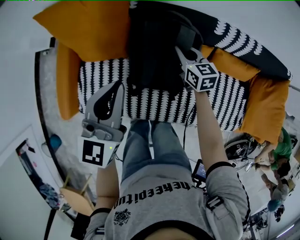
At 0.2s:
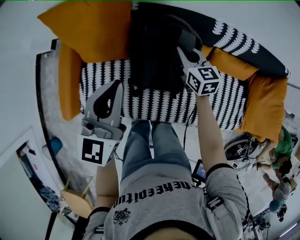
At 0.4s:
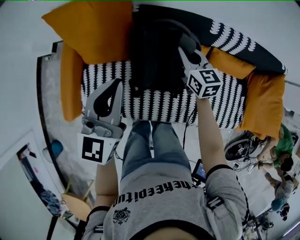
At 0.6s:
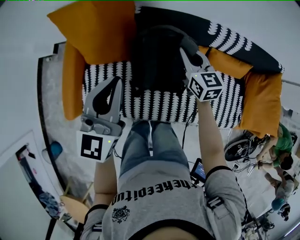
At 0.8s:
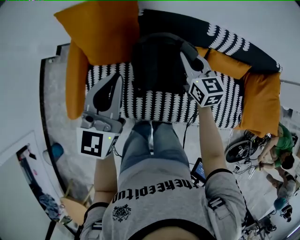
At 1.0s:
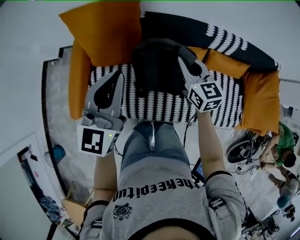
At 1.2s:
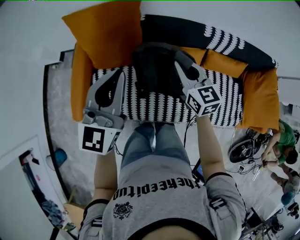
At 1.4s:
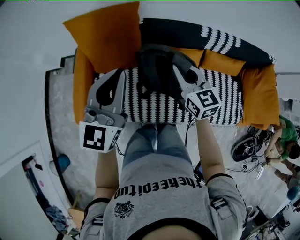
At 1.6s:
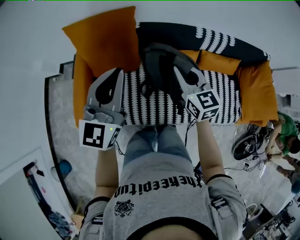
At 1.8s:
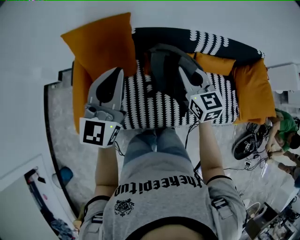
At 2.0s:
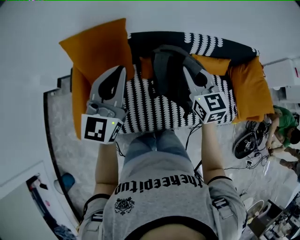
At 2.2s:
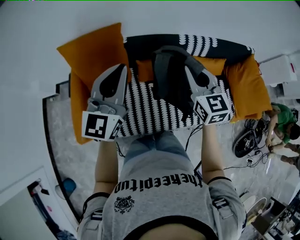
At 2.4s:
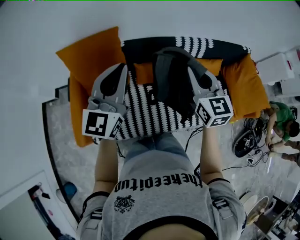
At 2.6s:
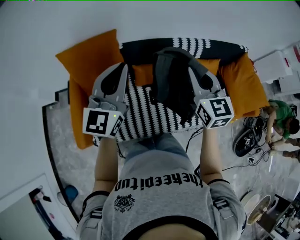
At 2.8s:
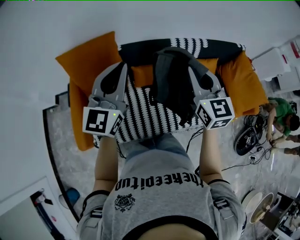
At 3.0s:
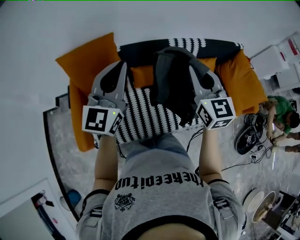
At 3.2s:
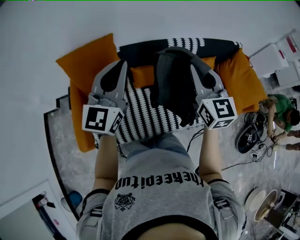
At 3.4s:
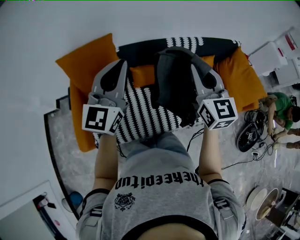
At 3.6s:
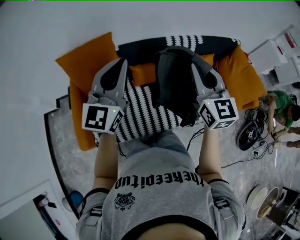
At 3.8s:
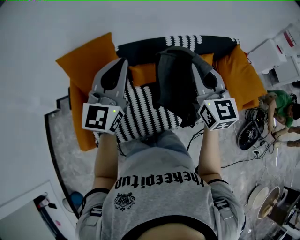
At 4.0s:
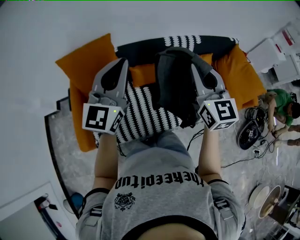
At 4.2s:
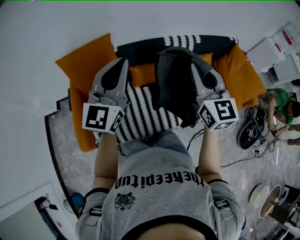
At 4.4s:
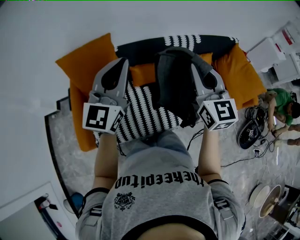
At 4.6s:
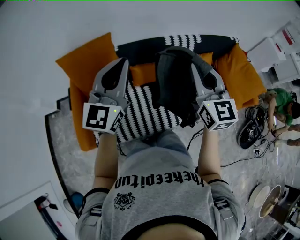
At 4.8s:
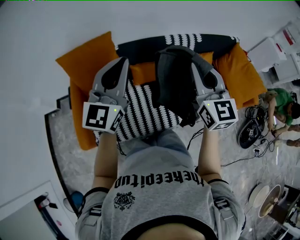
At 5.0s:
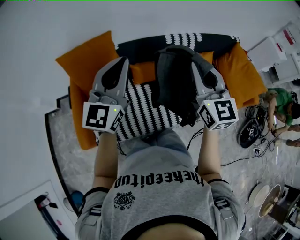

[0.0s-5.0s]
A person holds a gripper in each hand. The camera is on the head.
0.0s to 1.6s: The right gripper moves upward and backward, some 25 cm, while the left gripper moves upward and backward, some 15 cm.
1.6s to 3.4s: The right gripper is displaced upward, to the right and backward by about 20 cm, and rotates some 30 degrees, while the left gripper travels to the right and upward by about 10 cm.
3.4s to 5.0s: The grippers stay close to where they were, moving slightly.

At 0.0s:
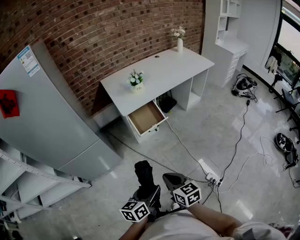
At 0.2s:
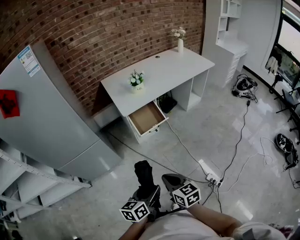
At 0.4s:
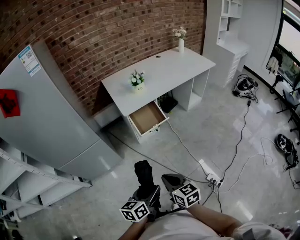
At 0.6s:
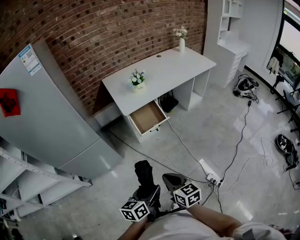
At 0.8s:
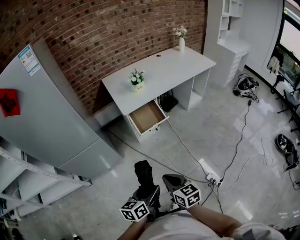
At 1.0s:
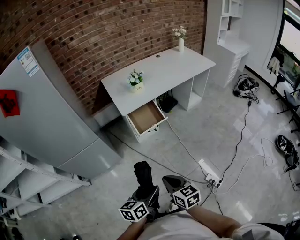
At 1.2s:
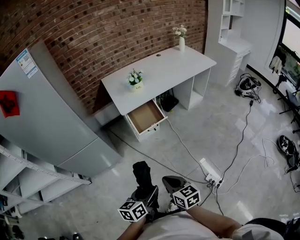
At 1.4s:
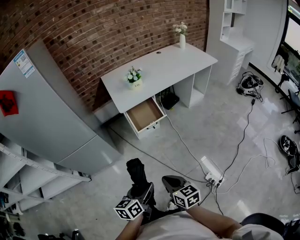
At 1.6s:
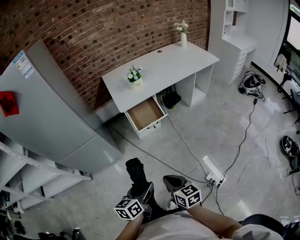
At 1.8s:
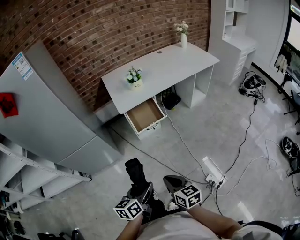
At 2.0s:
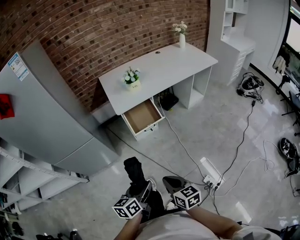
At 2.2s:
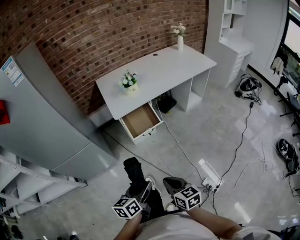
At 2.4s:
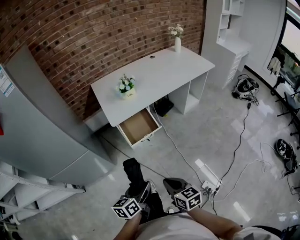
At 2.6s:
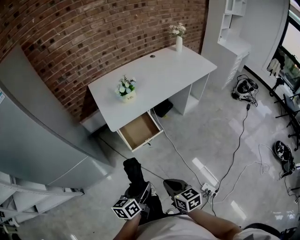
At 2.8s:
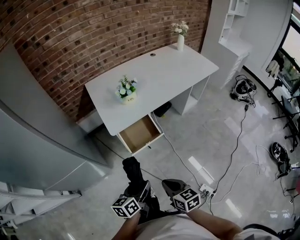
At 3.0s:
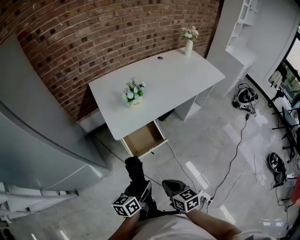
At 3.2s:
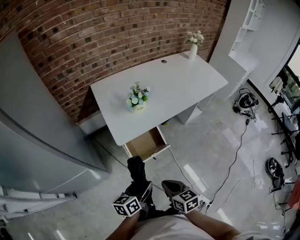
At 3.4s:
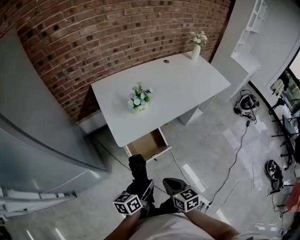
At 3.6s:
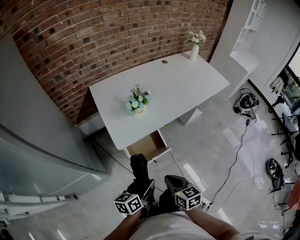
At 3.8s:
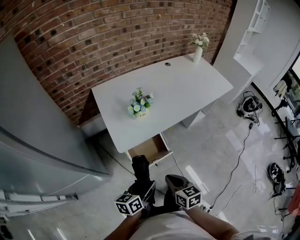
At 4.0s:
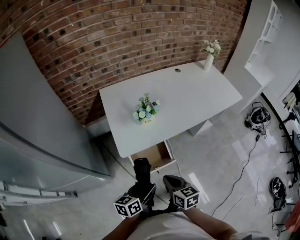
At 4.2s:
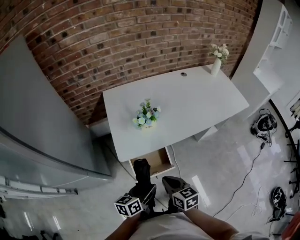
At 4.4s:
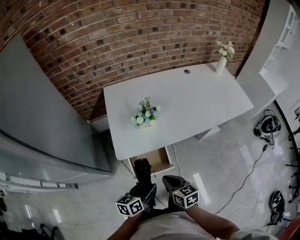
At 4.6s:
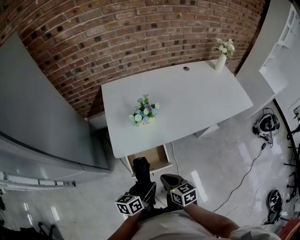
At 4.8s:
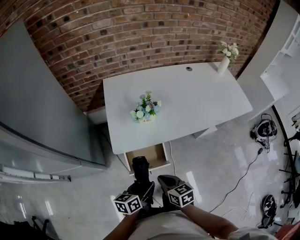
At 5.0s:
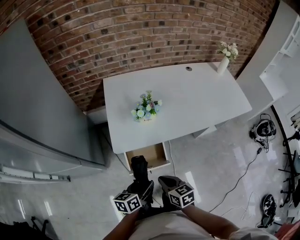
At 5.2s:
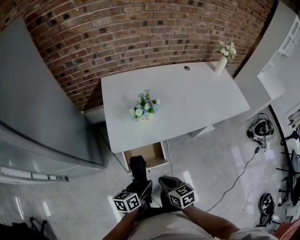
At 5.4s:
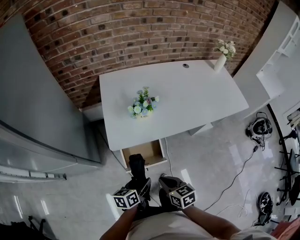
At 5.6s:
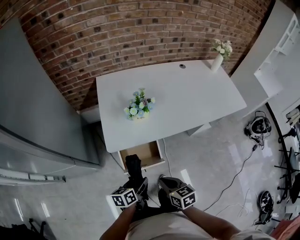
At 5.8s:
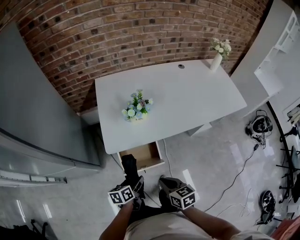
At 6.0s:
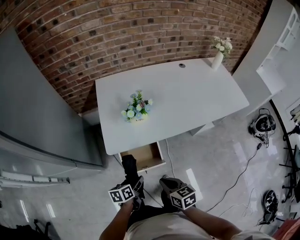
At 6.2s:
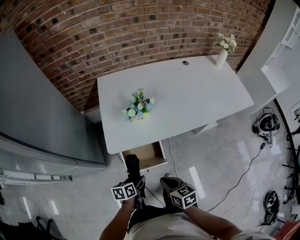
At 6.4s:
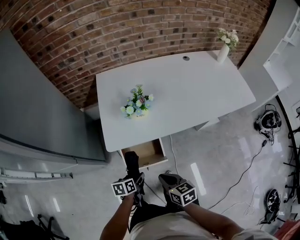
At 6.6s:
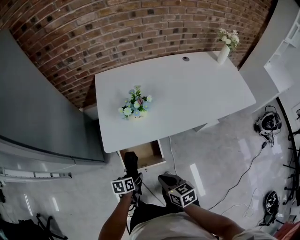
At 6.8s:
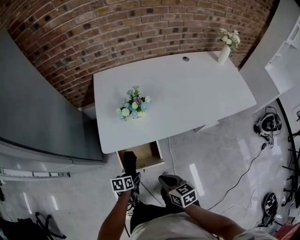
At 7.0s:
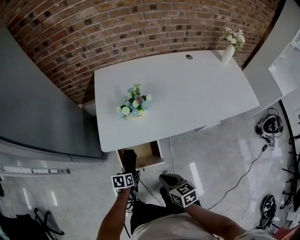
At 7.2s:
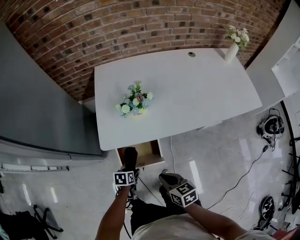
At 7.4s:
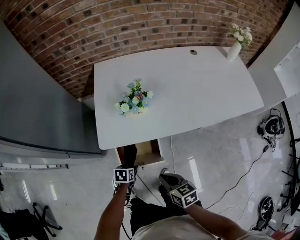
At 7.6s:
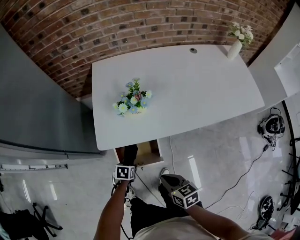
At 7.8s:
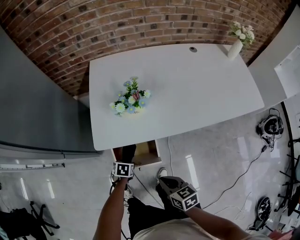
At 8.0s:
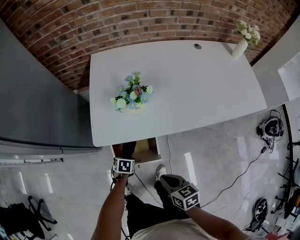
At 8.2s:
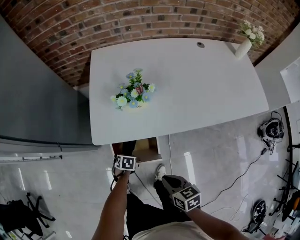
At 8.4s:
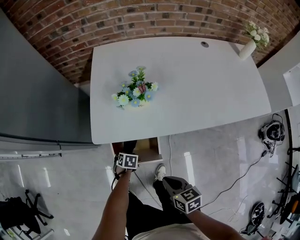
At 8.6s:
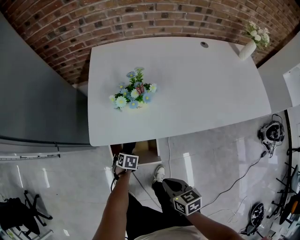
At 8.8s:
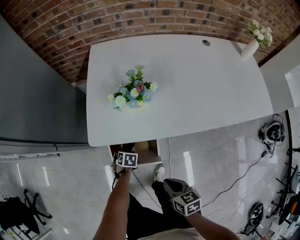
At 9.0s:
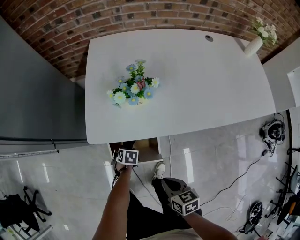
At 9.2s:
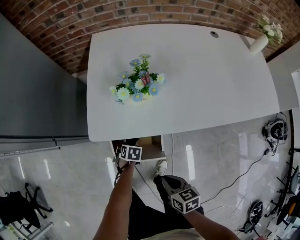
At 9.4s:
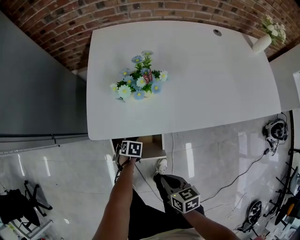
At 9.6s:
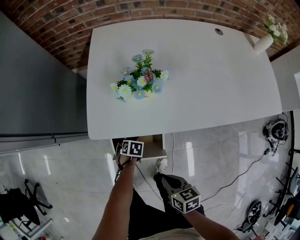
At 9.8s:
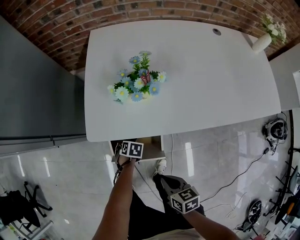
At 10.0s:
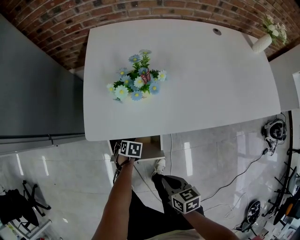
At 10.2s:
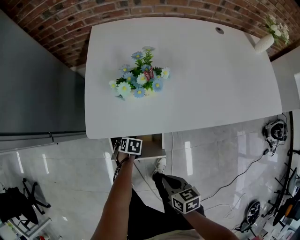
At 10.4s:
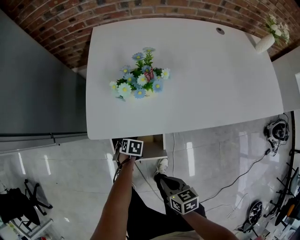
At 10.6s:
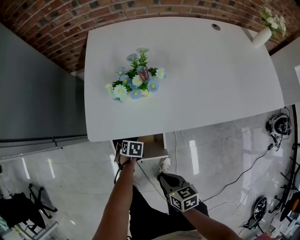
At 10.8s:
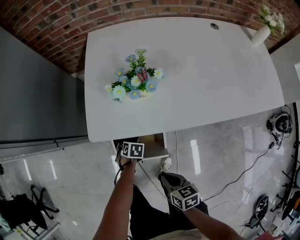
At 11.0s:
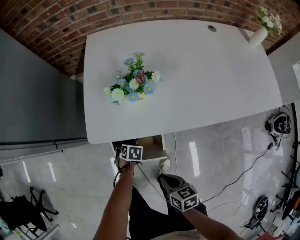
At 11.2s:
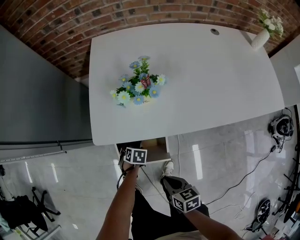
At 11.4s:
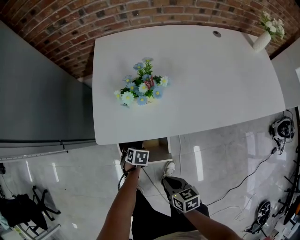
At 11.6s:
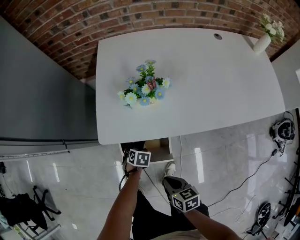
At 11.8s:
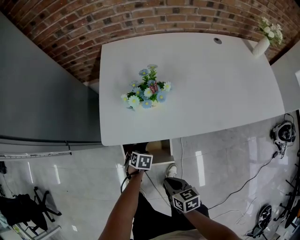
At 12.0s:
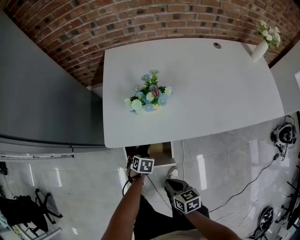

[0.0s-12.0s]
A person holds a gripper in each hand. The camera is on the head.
0.0s to 1.6s: The right gripper travels to the right by approximately 5 cm.
1.6s to 3.0s: The grippers both shift forward by approximately 25 cm.
3.0s to 4.4s: The right gripper moves forward, approximately 20 cm; the left gripper goes roughly 20 cm forward and to the right.
4.4s to 6.0s: The left gripper heads downward, covering roughly 10 cm. The right gripper moves approximately 5 cm.
6.0s to 7.6s: The right gripper moves downward, about 5 cm, while the left gripper is displaced downward and forward by approximately 15 cm, and tips its fingers downward by about 30 degrees.
7.6s to 9.0s: The two grippers go approximately 5 cm downward.
9.0s to 10.4s: There are only small adjustments of the grippers.
10.4s to 12.0s: The left gripper shifts approximately 10 cm upward.

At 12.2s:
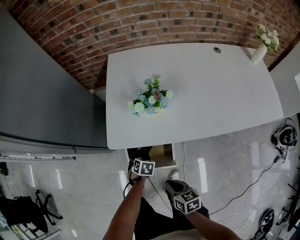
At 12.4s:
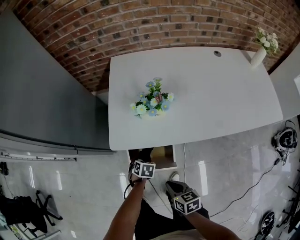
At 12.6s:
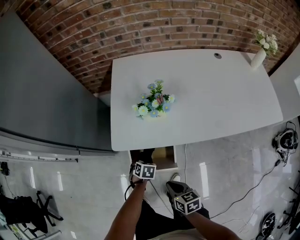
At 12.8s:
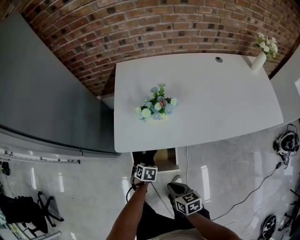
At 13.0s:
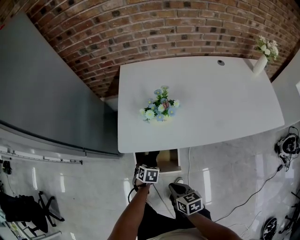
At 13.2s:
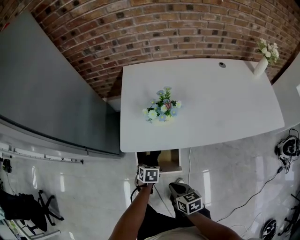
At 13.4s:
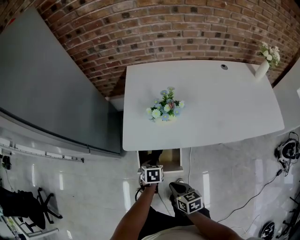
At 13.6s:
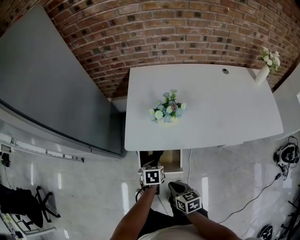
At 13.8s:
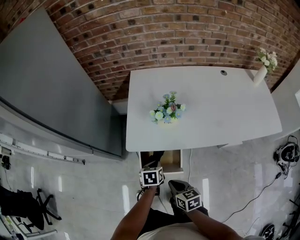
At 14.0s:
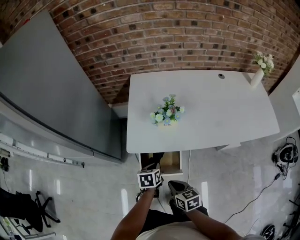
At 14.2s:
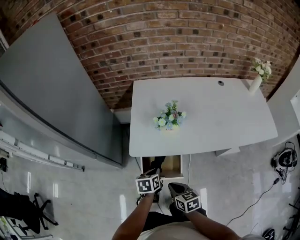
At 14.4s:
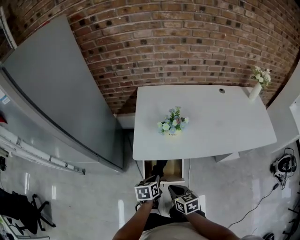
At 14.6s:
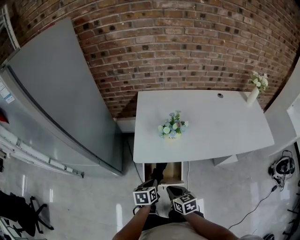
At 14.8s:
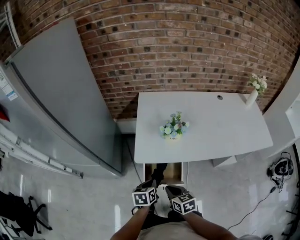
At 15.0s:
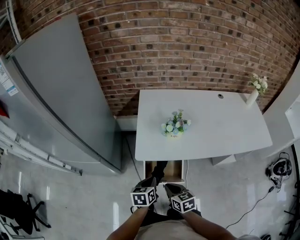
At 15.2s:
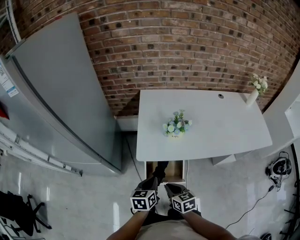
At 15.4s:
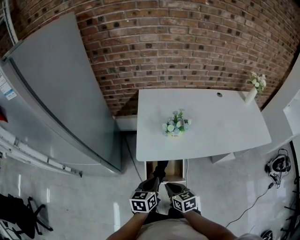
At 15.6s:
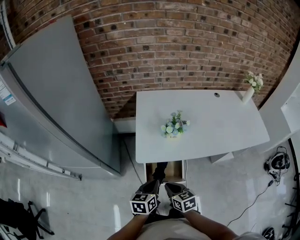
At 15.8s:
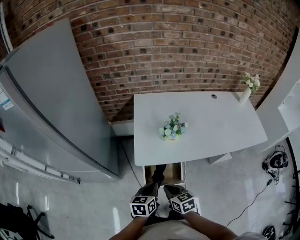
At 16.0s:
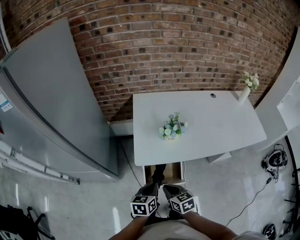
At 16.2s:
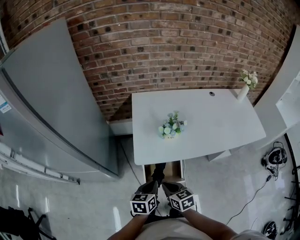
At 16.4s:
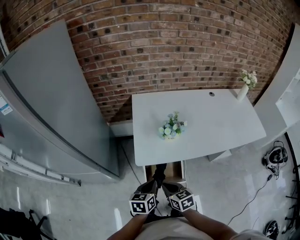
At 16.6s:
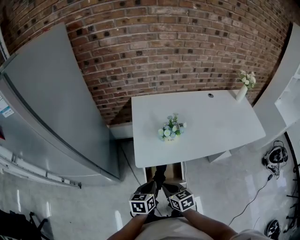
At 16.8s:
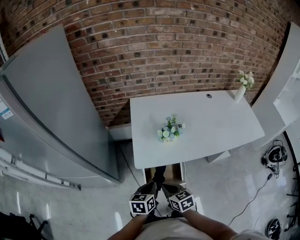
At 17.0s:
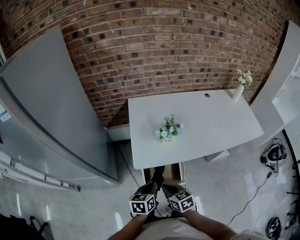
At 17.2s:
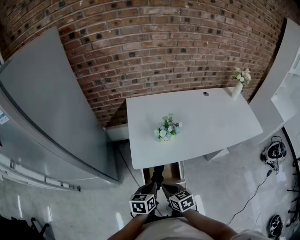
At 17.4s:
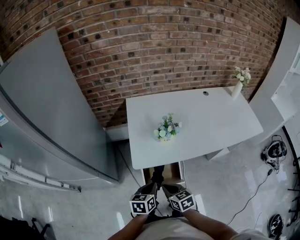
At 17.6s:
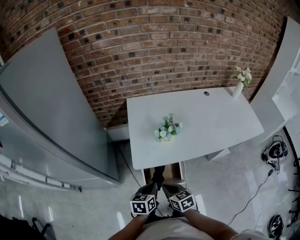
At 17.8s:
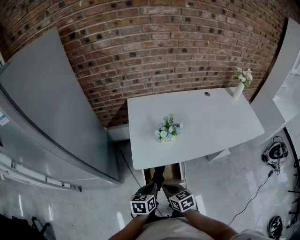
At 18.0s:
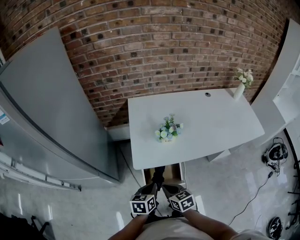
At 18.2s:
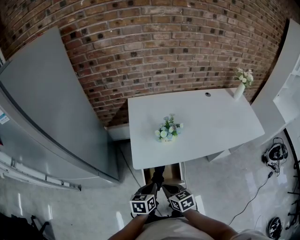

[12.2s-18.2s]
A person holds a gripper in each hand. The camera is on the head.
12.2s to 13.8s: The right gripper moves upward, about 5 cm, while the left gripper heads upward, covering approximately 15 cm, changes its angle by roughly 30 degrees, and closes up.
13.8s to 15.2s: The left gripper is displaced upward and to the left by about 15 cm, and turns by about 20 degrees. The right gripper travels to the left by roughly 5 cm.
15.2s to 18.2s: The grippers make only small movements.

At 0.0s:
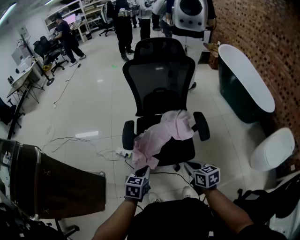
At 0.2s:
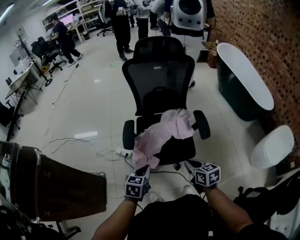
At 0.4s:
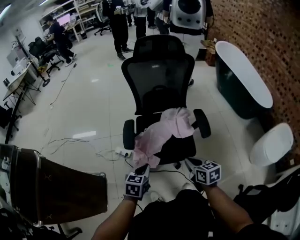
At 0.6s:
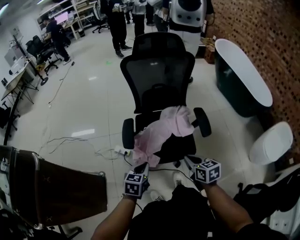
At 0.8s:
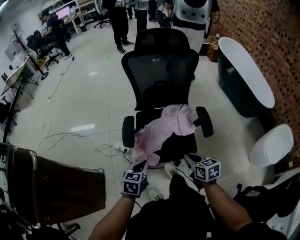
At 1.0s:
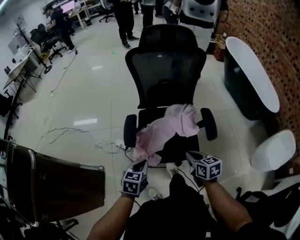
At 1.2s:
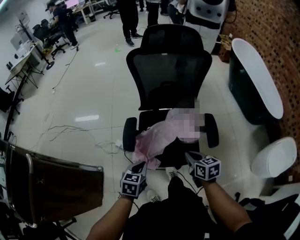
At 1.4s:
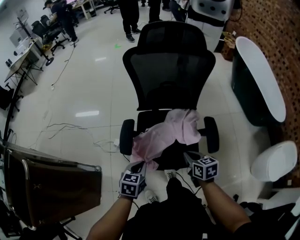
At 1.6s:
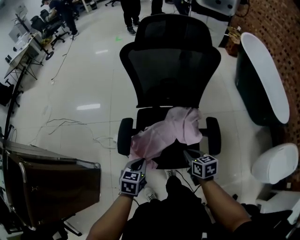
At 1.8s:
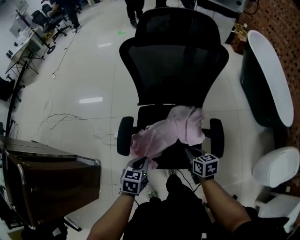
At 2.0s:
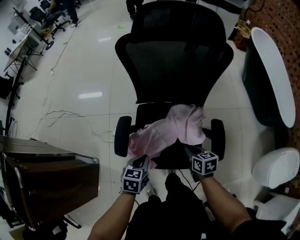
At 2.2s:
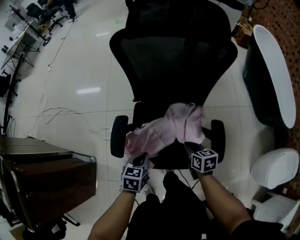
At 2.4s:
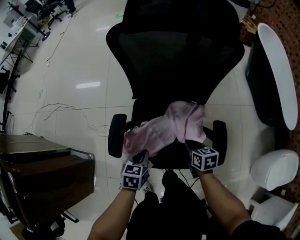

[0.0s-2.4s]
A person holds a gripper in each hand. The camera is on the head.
0.0s to 1.2s: The right gripper moves forward, some 10 cm. Meanwhile the left gripper shifts some 10 cm forward.
1.2s to 2.4s: Both grippers travel together forward, downward and to the right, about 20 cm.
